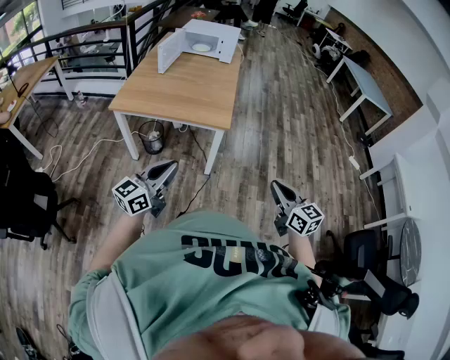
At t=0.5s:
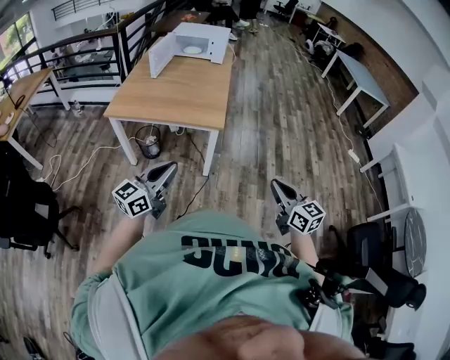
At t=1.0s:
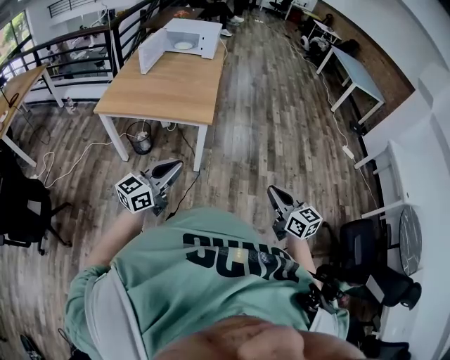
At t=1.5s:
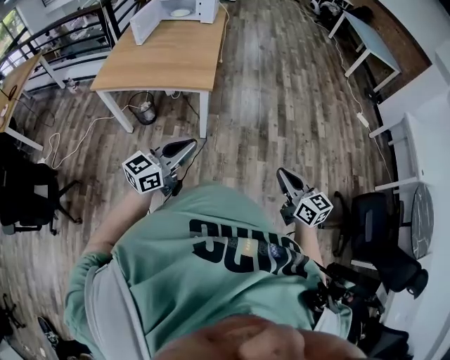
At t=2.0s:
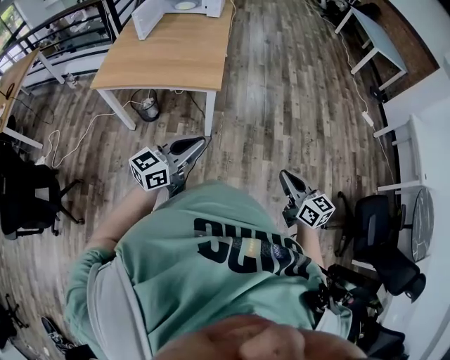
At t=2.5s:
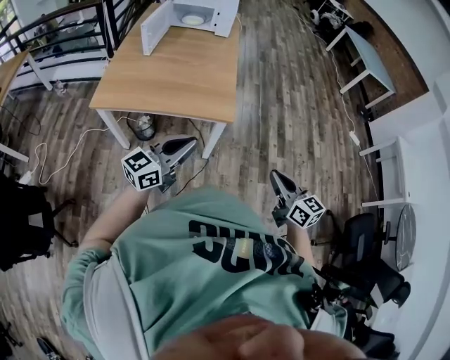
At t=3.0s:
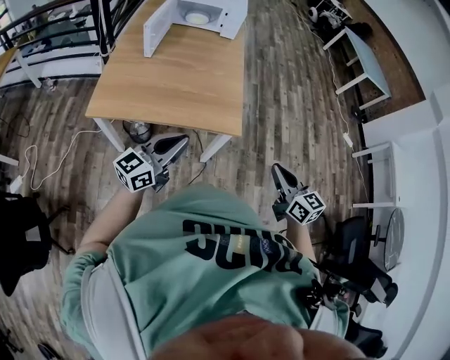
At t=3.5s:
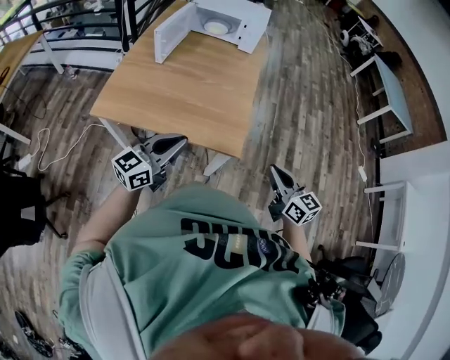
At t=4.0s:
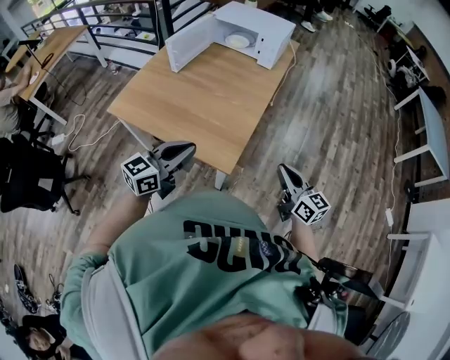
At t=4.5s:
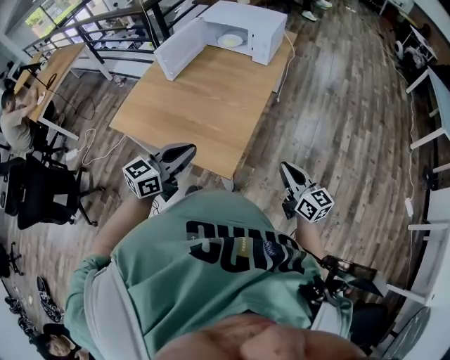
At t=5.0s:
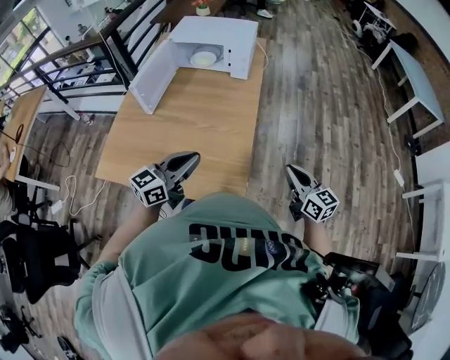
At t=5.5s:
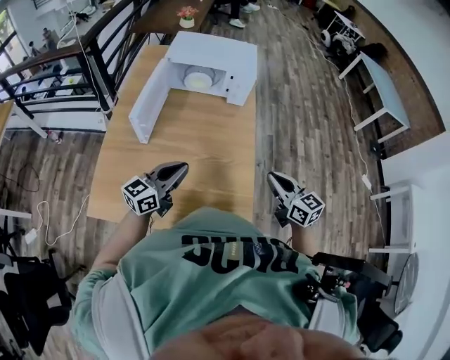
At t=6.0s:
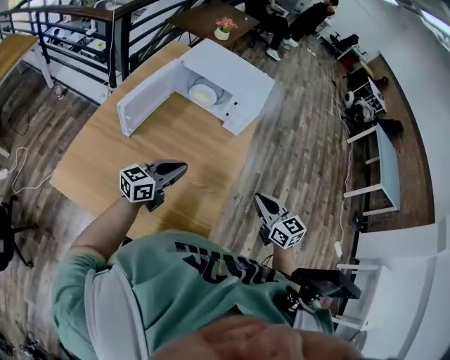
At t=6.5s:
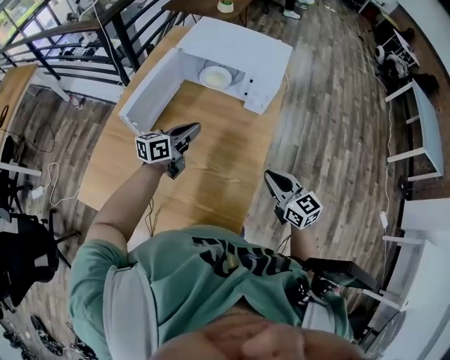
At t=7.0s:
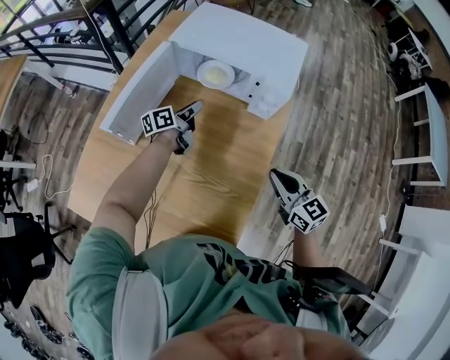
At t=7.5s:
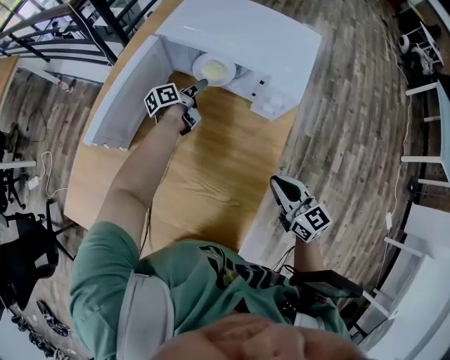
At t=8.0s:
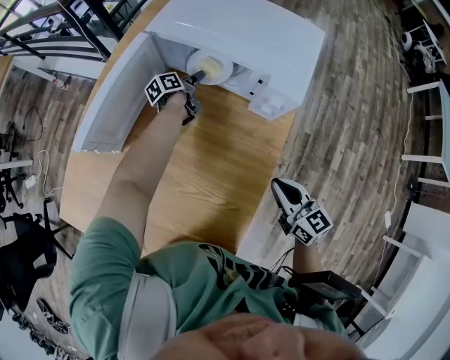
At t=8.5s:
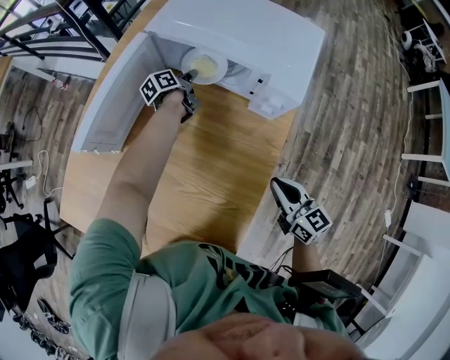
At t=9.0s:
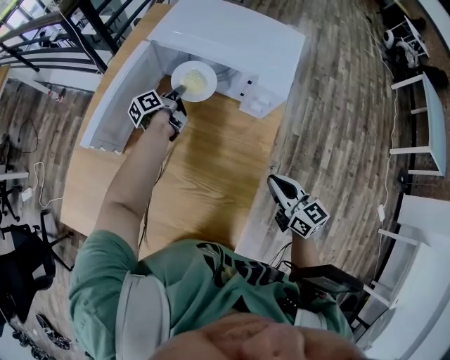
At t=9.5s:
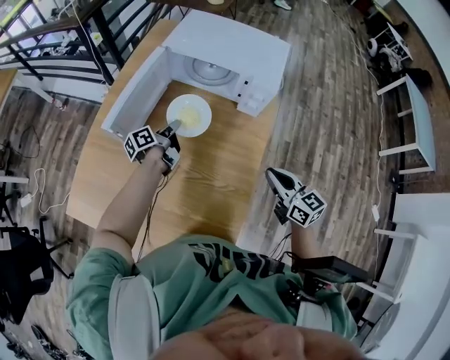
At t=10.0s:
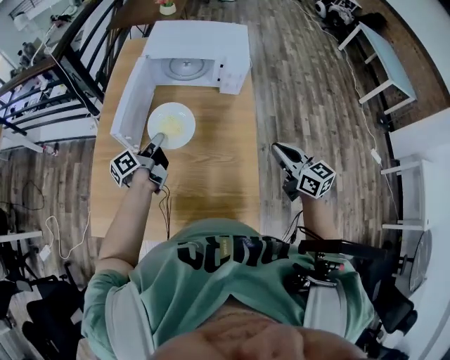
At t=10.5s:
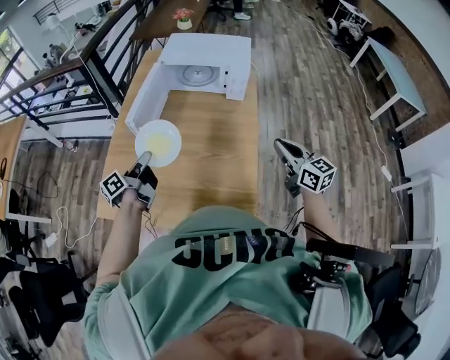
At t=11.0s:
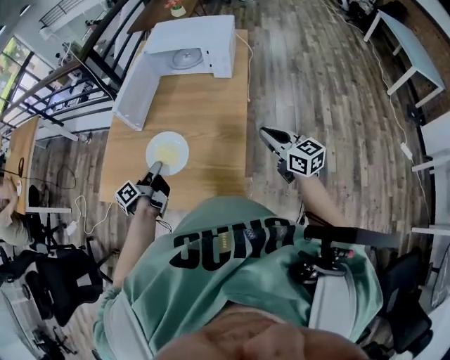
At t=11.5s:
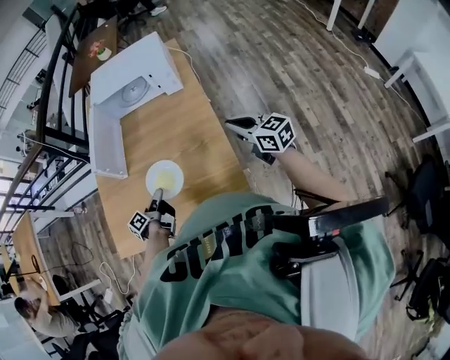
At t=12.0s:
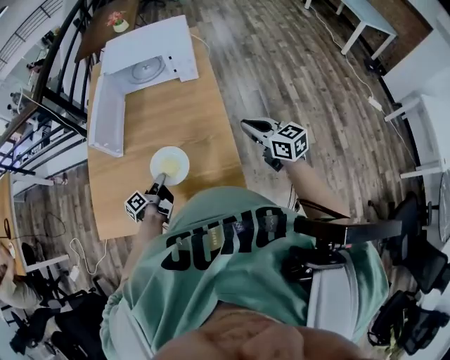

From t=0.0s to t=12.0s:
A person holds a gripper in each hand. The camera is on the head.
From t=0.0s to t=2.0s: The left gripper is displaced to the right by approximately 15 cm. Meanwhile the right gripper shifts some 10 cm to the right and downward.
From t=2.0s to t=4.0s: Both grippers travel together forward, approximately 40 cm. The left gripper swivels roughly 20 degrees; the right gripper swivels roughly 20 degrees.
From t=4.0s to t=6.0s: Both grippers move forward, approximately 35 cm. The right gripper changes its angle by roughly 20 degrees.
From t=6.0s to t=8.0s: The left gripper travels forward and downward by about 50 cm, twists approximately 50 degrees counterclockwise, seen from behind, and opens its fingers, while the right gripper shifts roughly 25 cm forward and downward.
From t=8.0s to t=10.0s: The right gripper moves backward, upward and to the left, some 20 cm. The left gripper goes roughly 40 cm backward, upward and to the left, changes its angle by about 20 degrees, and closes up.
From t=10.0s to t=12.0s: The right gripper is displaced backward and to the right by some 10 cm; the left gripper heads backward and downward, covering about 20 cm.

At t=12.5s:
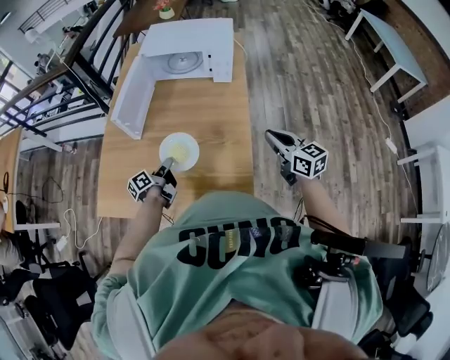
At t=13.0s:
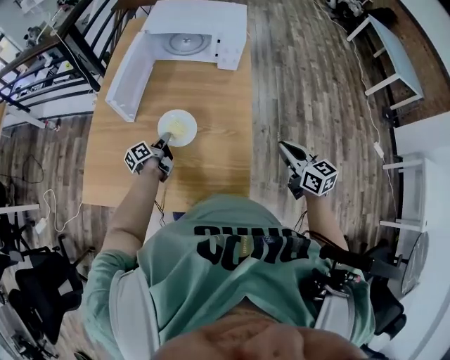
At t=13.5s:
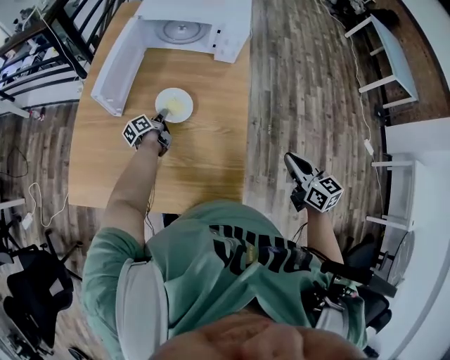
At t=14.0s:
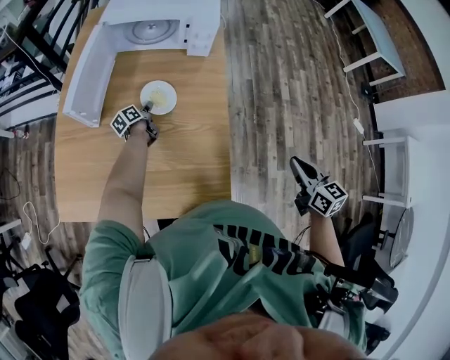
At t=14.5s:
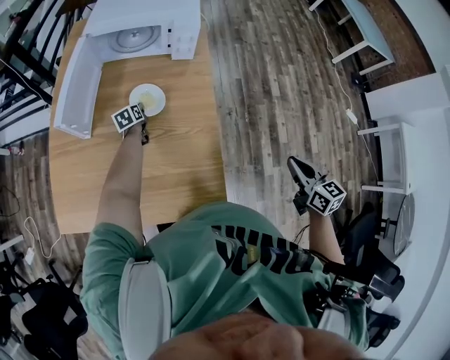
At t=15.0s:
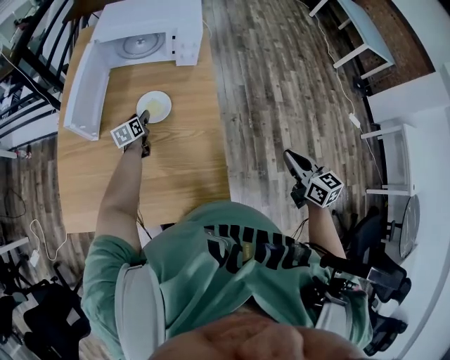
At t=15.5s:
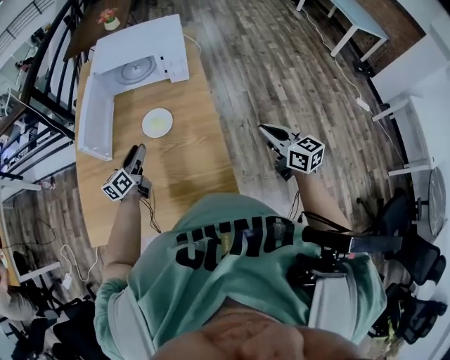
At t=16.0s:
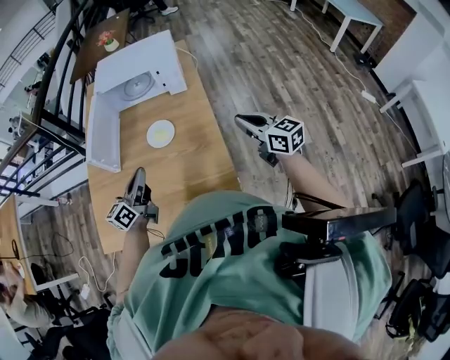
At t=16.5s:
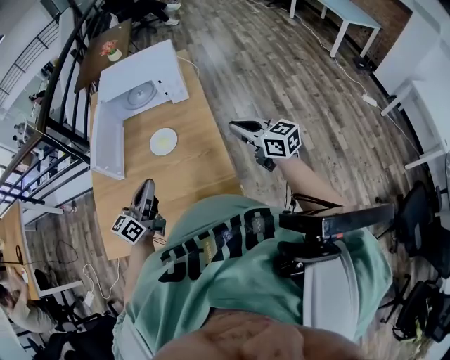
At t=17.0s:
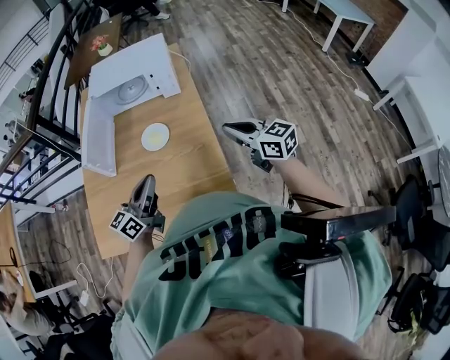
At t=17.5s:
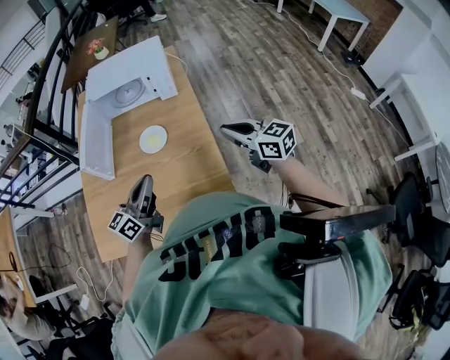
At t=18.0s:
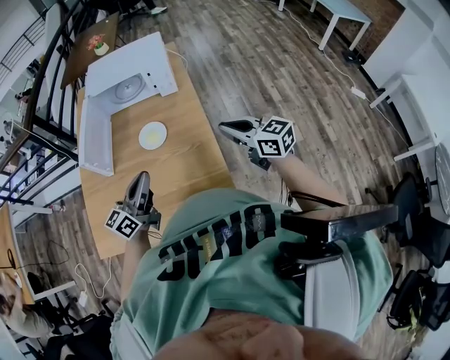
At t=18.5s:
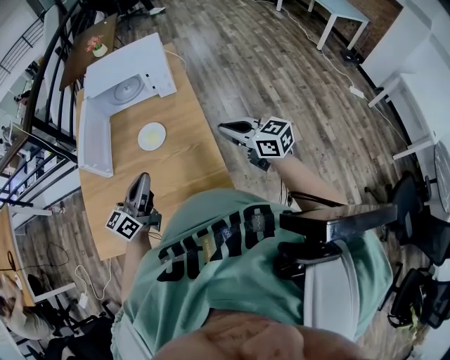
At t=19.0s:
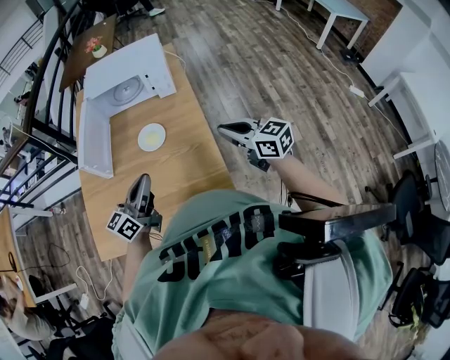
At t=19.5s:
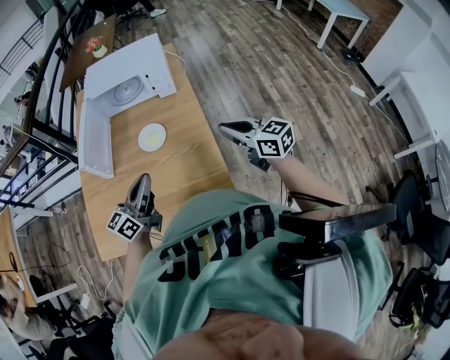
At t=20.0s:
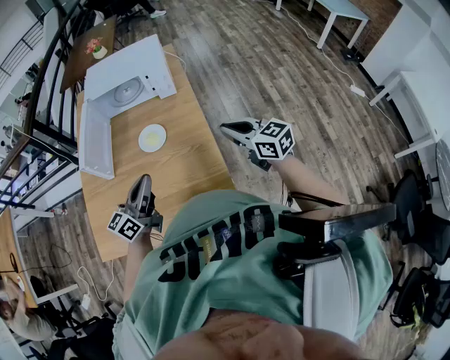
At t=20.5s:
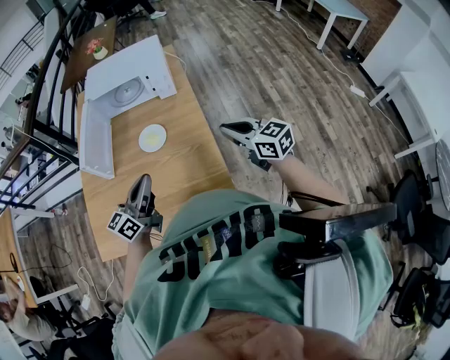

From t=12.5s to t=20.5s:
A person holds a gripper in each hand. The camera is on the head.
From t=12.5s to t=14.5s: The right gripper shifts some 15 cm to the right and backward, and rotates about 20 degrees; the left gripper is displaced forward and downward by roughly 30 cm, and swivels about 50 degrees.
From t=14.5s to t=16.5s: The left gripper goes approximately 40 cm upward and backward, angles its fingers upward, by roughly 50 degrees, and closes up, while the right gripper goes about 15 cm to the left, forward and upward, and swivels some 30 degrees.
From t=16.5s to t=18.5s: The grippers stay close to where they were, moving slightly.
From t=18.5s to t=20.5s: Neither gripper changes place.

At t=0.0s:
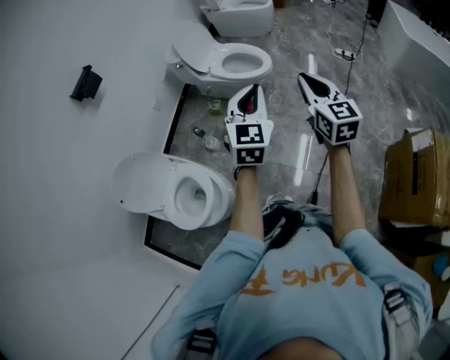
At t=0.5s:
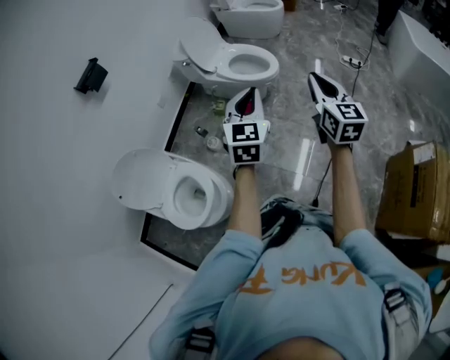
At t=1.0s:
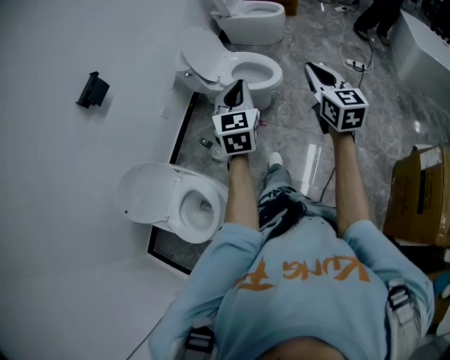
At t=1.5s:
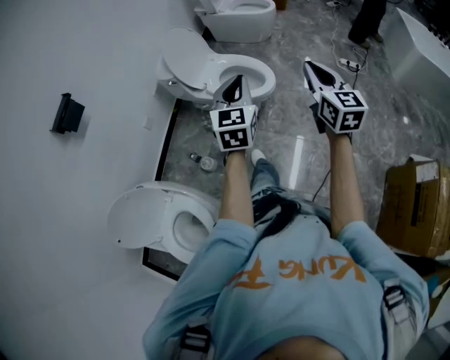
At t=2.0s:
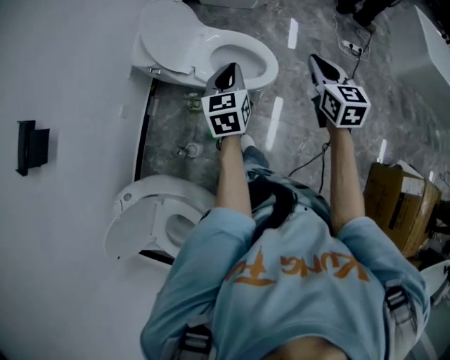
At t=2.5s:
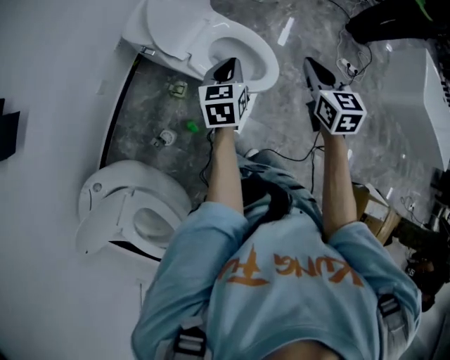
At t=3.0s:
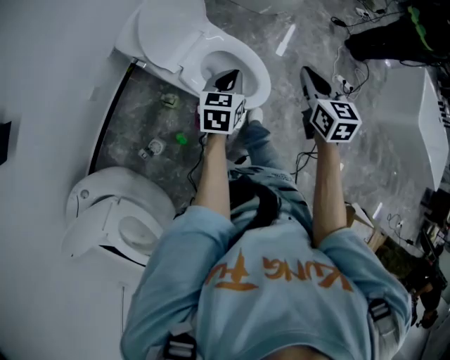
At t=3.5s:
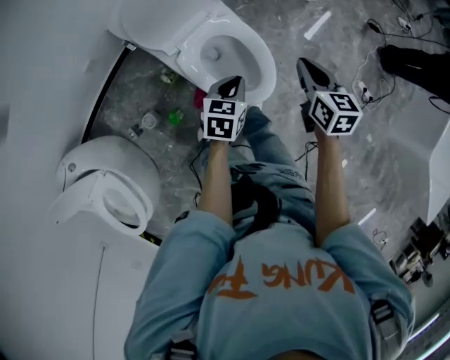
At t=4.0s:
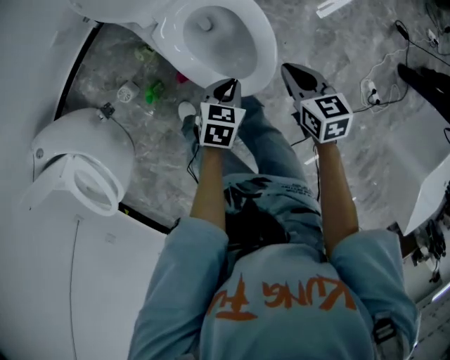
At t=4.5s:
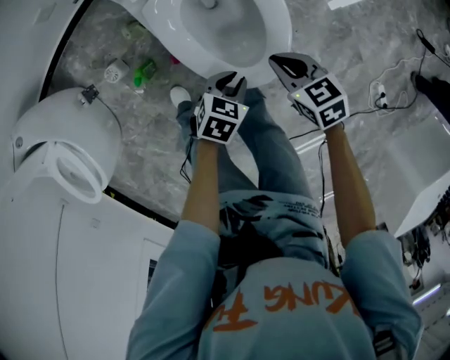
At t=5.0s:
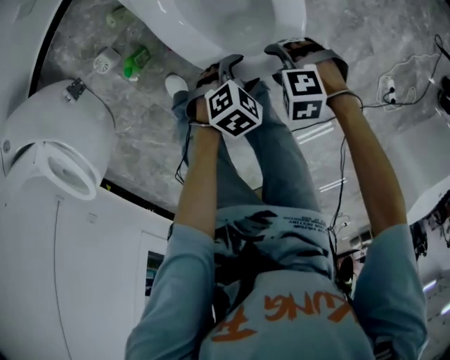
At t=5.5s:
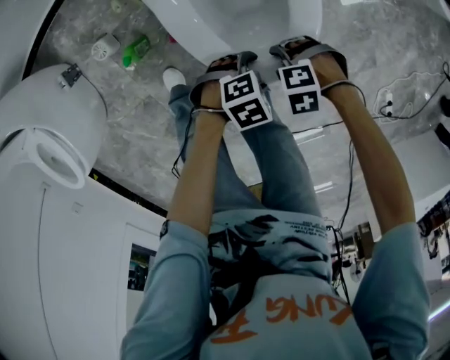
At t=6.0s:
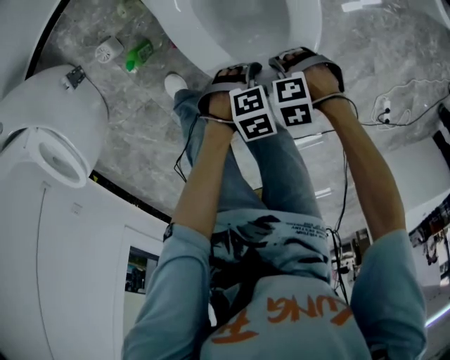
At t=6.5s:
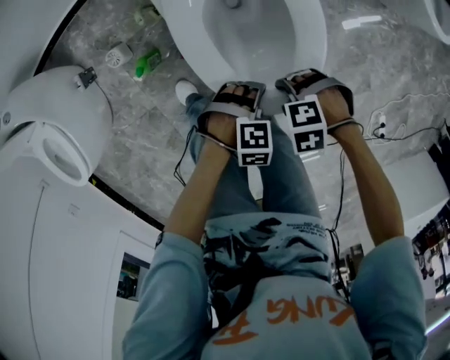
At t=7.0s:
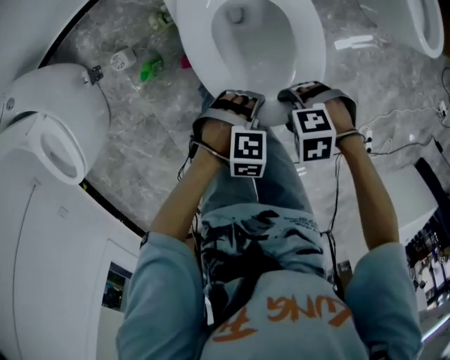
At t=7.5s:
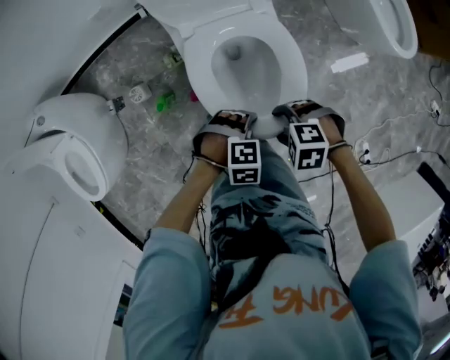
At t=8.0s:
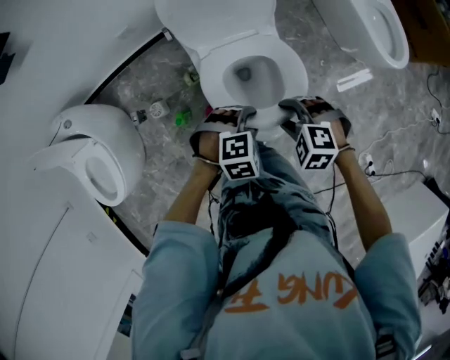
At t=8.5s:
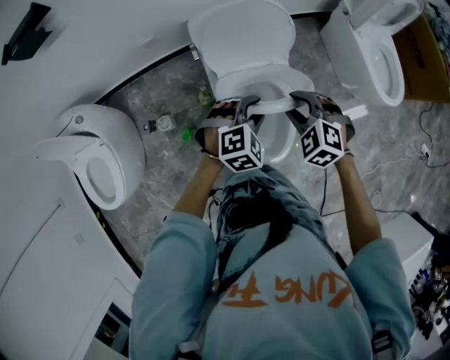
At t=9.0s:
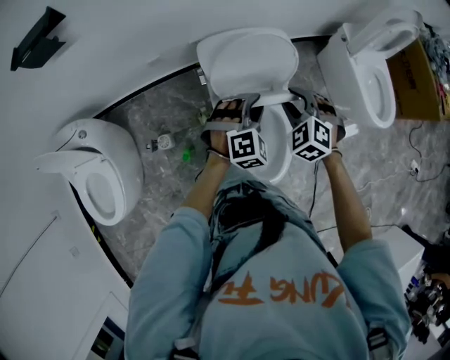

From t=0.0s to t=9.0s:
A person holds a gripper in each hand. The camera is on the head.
From t=0.0s to t=2.0s: Both grippers are carried forward, roughly 50 cm. The left gripper rotates about 30 degrees.
From t=2.0s to t=4.5s: Both grippers travel together downward, roughly 40 cm. The right gripper swivels approximately 80 degrees, while the left gripper tips its fingers downward by about 30 degrees.
From t=4.5s to t=7.0s: The left gripper moves approximately 10 cm downward and comes back, twists roughly 50 degrees clockwise, seen from behind, and opens its fingers. Meanwhile the right gripper reaches about 15 cm downward, then returns, turns by roughly 80 degrees, and opens up.
From t=7.0s to t=9.0s: The left gripper ends up about 40 cm from where it was, swivels some 50 degrees, and closes up; the right gripper ends up roughly 50 cm from where it was, turns by roughly 60 degrees, and closes up.
